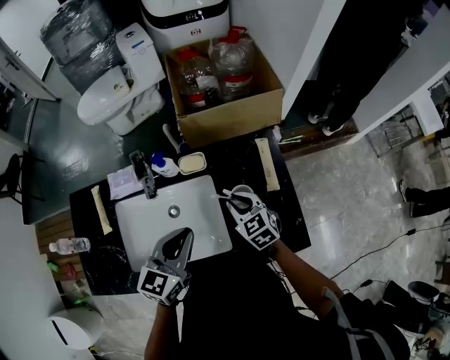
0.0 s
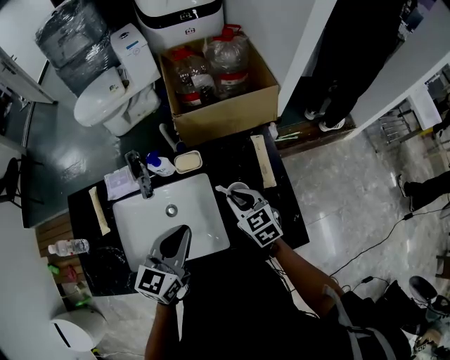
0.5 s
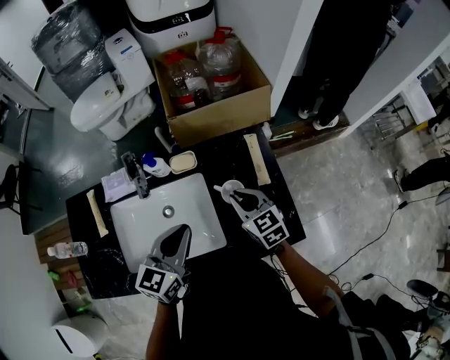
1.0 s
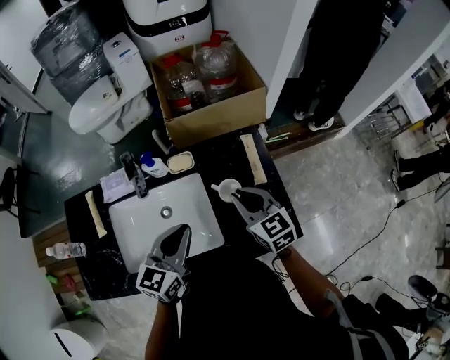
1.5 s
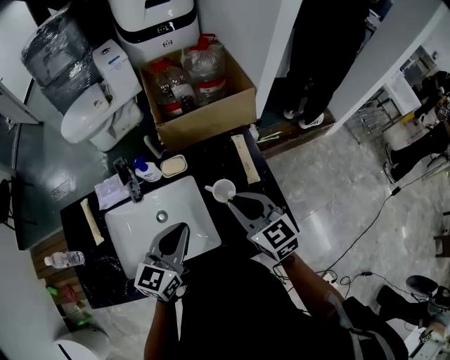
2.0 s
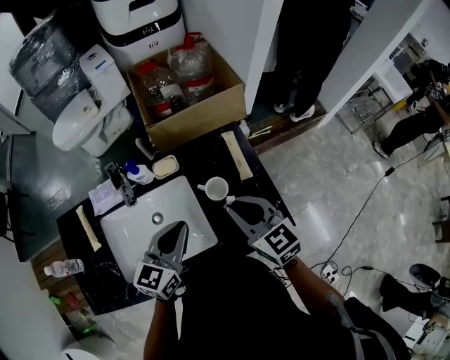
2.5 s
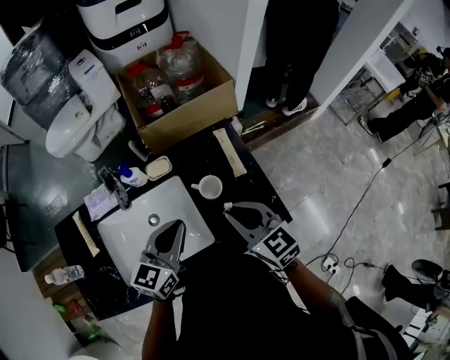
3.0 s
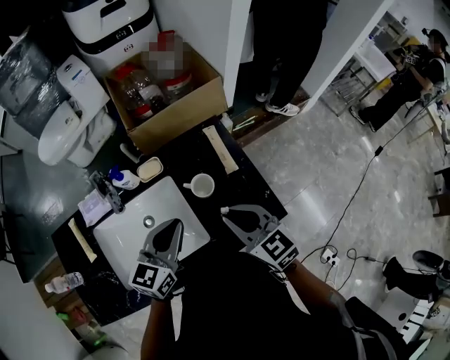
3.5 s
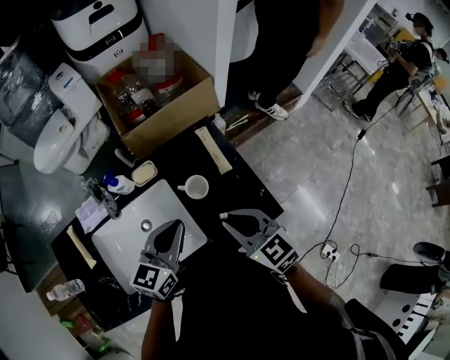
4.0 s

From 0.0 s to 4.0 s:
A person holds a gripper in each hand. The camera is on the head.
From 0.0 s to 2.0 s: The right gripper travels upward by roughly 15 cm.
From 2.0 s to 4.0 s: The left gripper moves roughly 5 cm. Meanwhile the right gripper travels backward by some 10 cm.

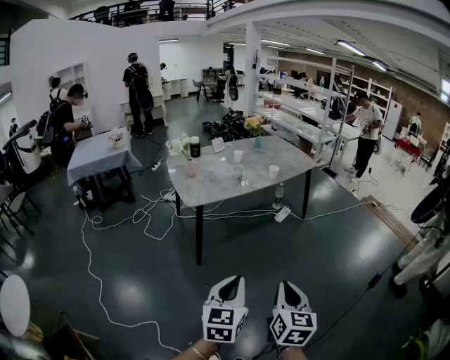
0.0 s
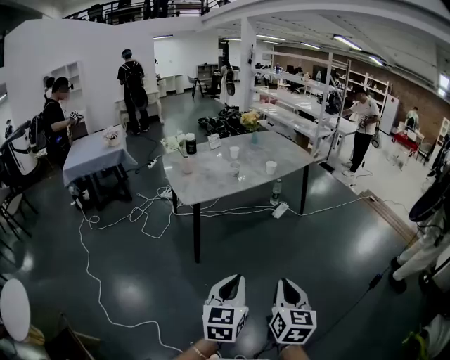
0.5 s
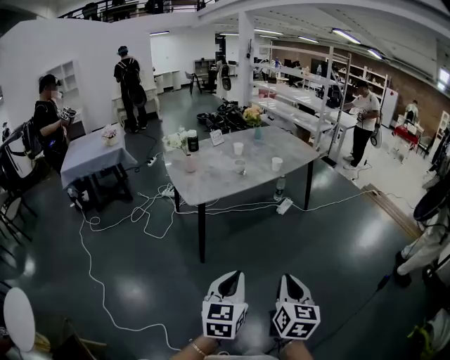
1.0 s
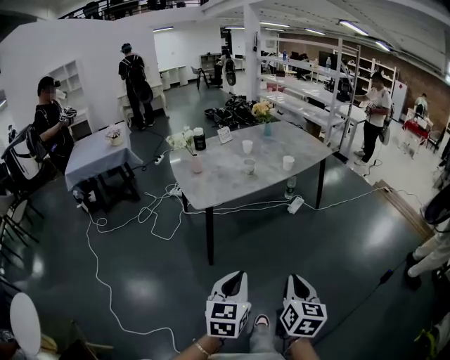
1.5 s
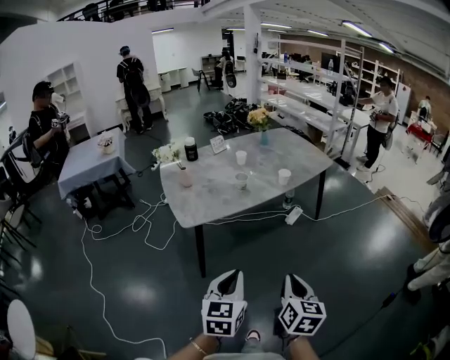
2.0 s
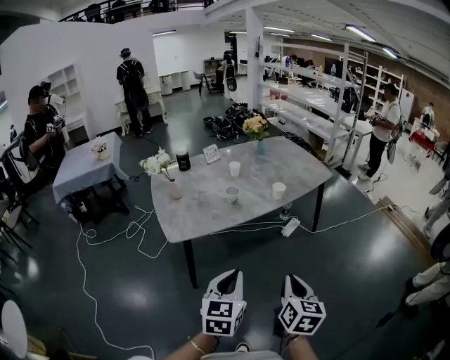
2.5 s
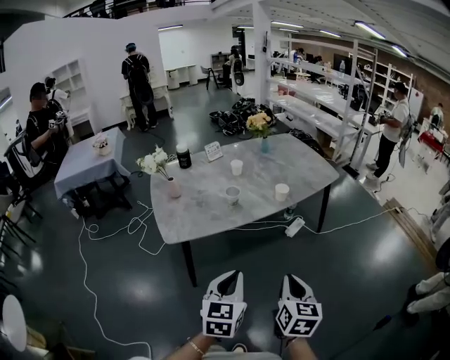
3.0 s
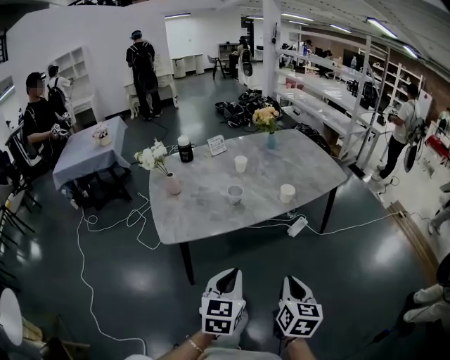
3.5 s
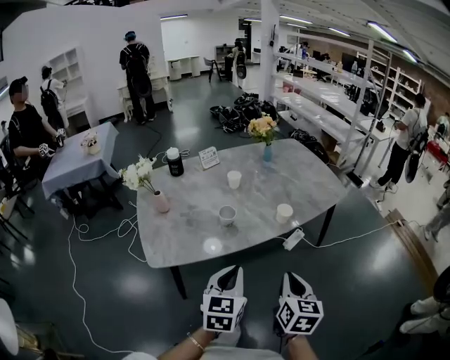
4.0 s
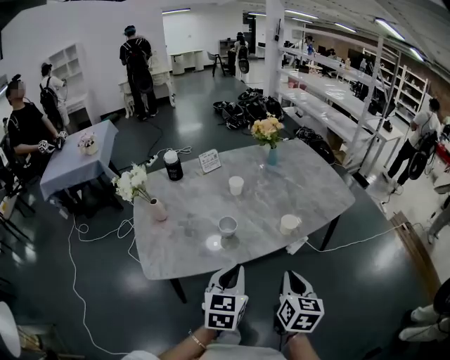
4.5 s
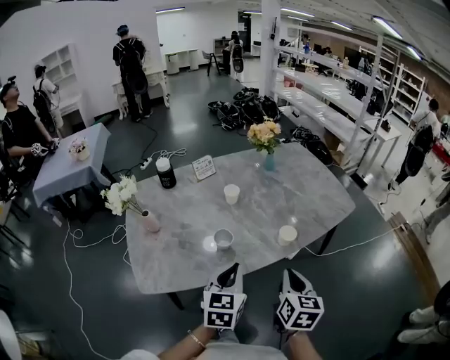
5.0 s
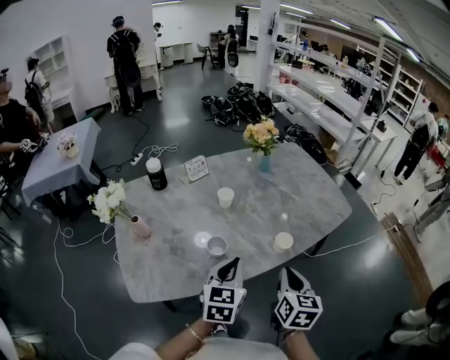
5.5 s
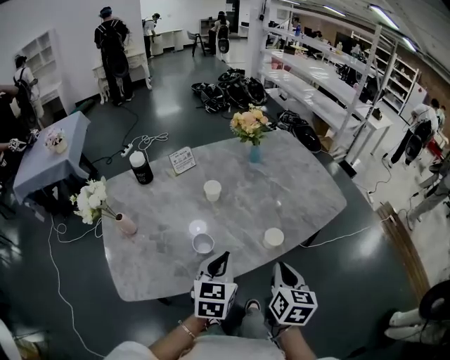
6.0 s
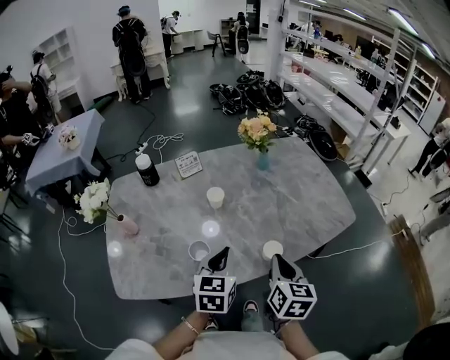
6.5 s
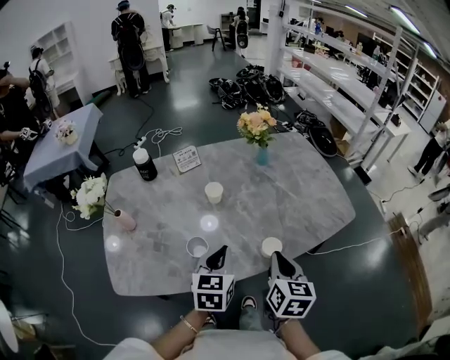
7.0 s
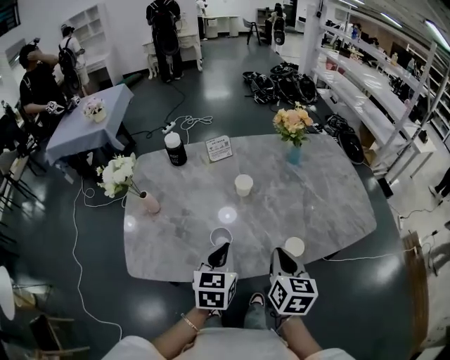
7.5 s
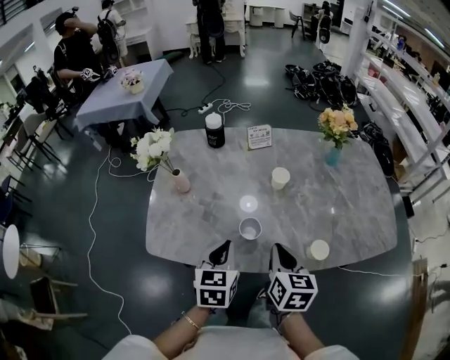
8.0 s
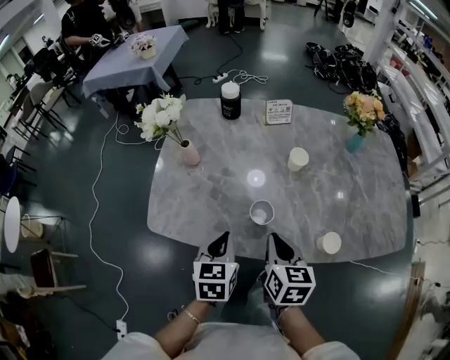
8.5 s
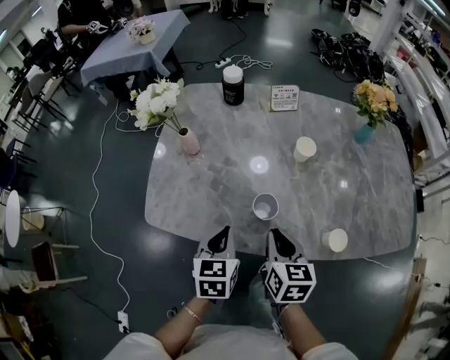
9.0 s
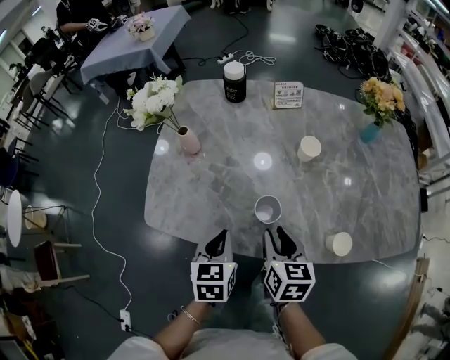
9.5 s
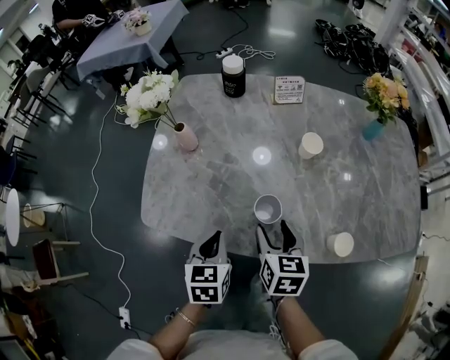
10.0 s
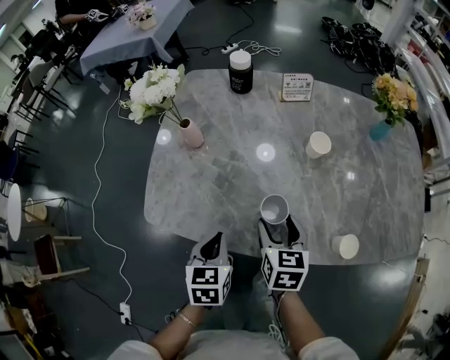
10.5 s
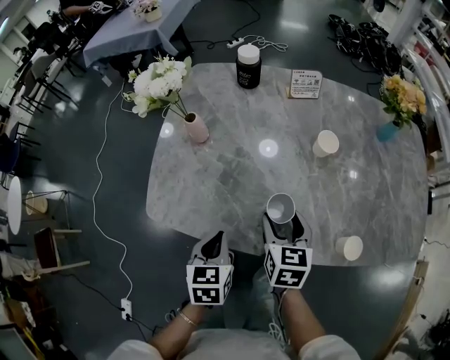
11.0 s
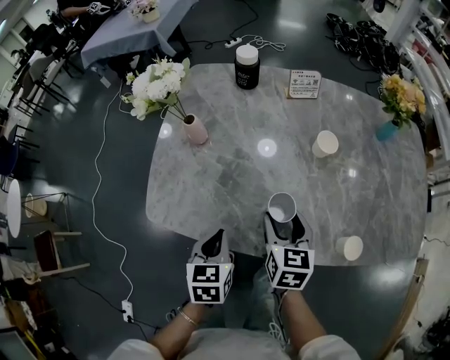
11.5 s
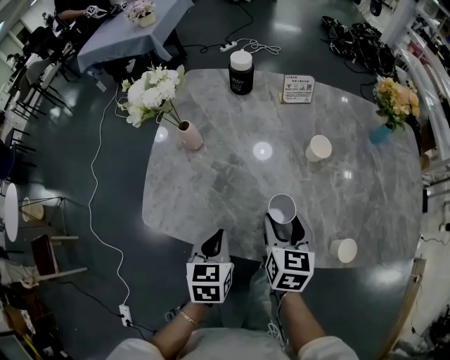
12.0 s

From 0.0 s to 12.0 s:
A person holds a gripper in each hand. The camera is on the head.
From 0.0 s to 2.0 s: The two grippers go about 25 cm forward.
From 2.0 s to 4.0 s: Both grippers travel together forward, approximately 35 cm.
From 4.0 s to 6.0 s: The two grippers go roughly 20 cm forward.
From 6.0 s to 8.0 s: The right gripper moves about 15 cm, and rotates about 30 degrees; the left gripper changes place by some 10 cm, and rotates some 30 degrees.
From 8.0 s to 10.0 s: The two grippers go roughly 10 cm downward and to the left. The right gripper opens up.
From 10.0 s to 12.0 s: The grippers move only a little.

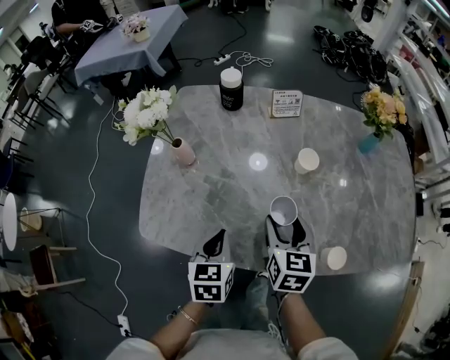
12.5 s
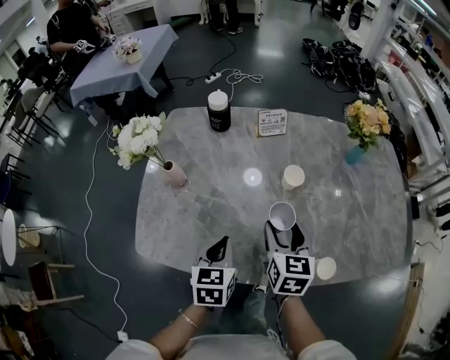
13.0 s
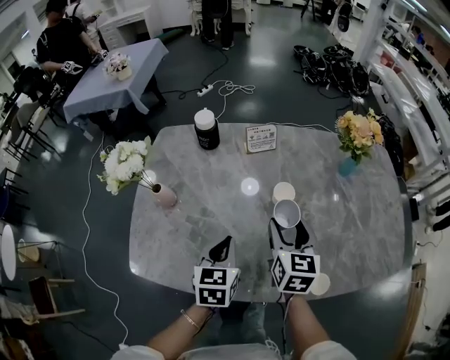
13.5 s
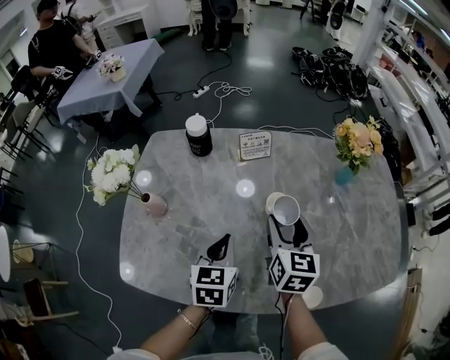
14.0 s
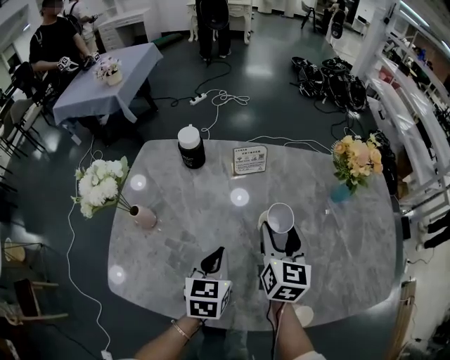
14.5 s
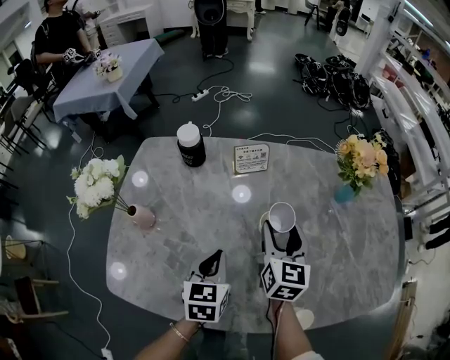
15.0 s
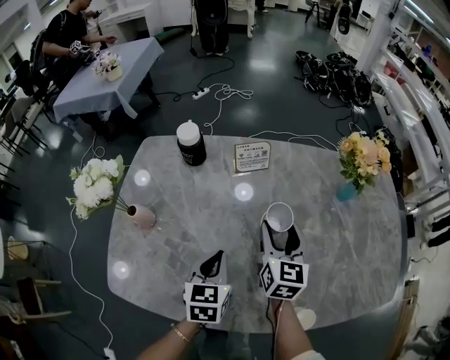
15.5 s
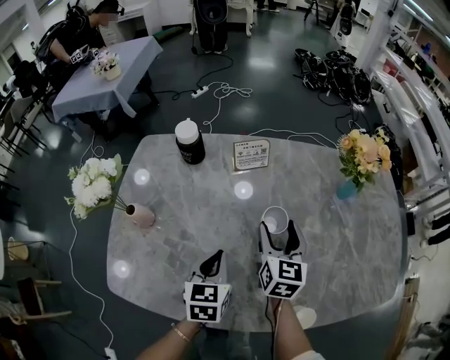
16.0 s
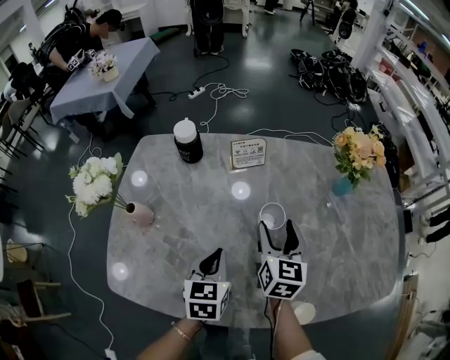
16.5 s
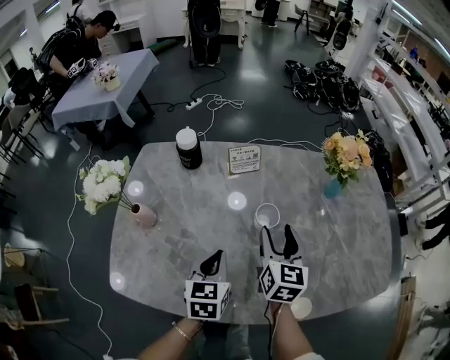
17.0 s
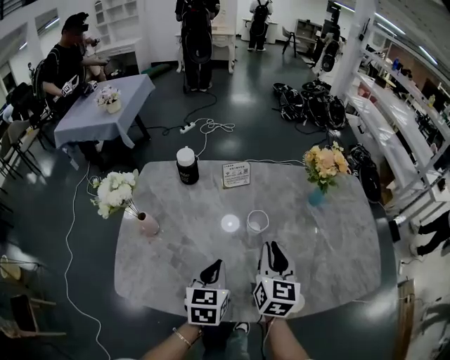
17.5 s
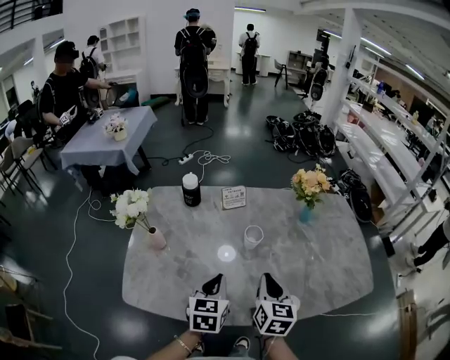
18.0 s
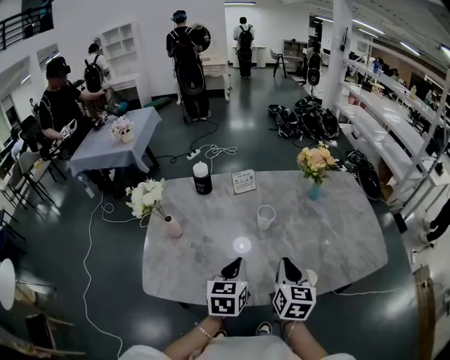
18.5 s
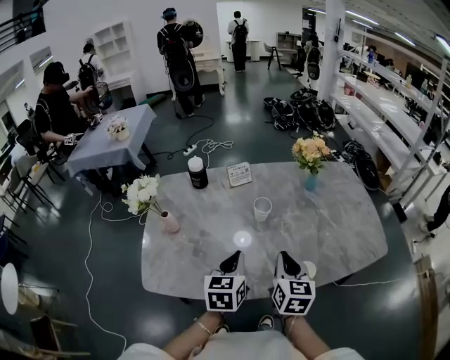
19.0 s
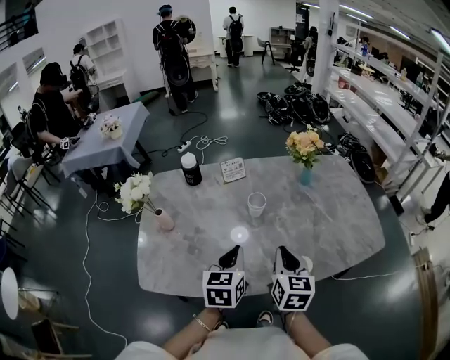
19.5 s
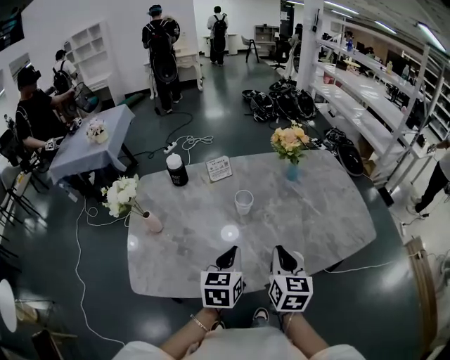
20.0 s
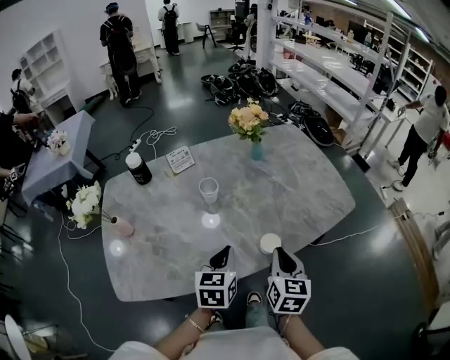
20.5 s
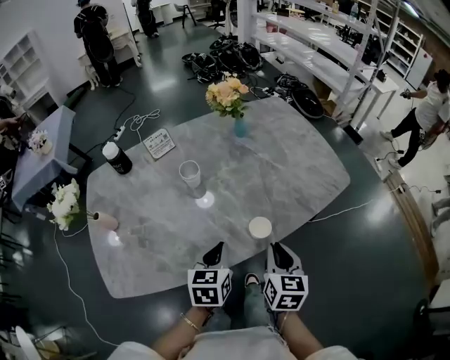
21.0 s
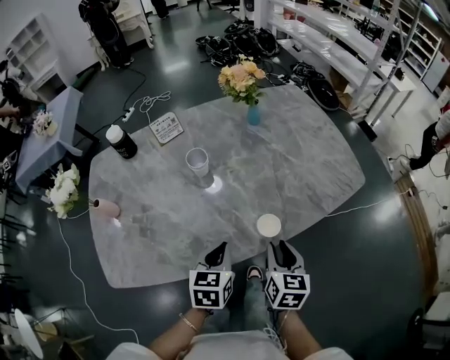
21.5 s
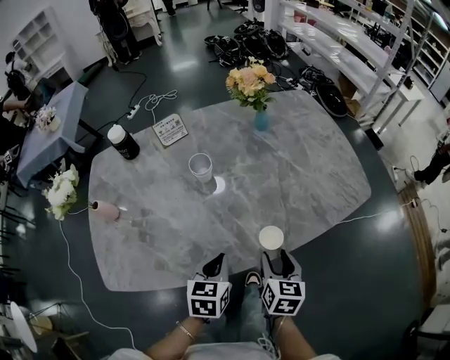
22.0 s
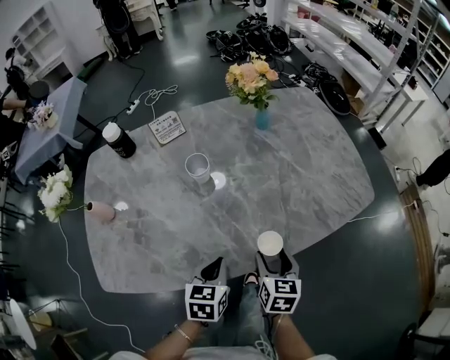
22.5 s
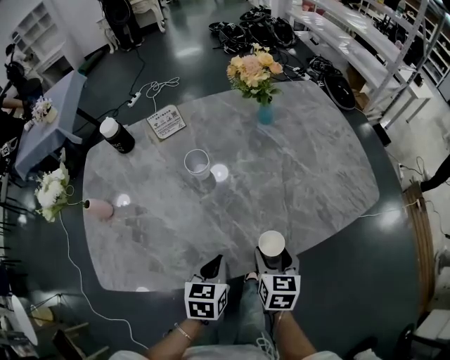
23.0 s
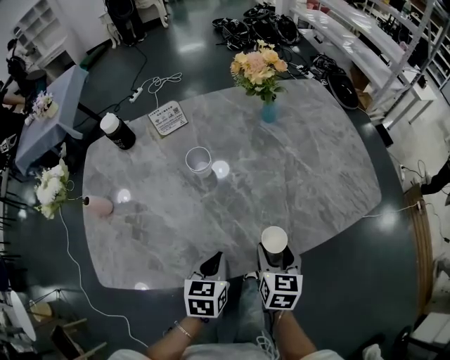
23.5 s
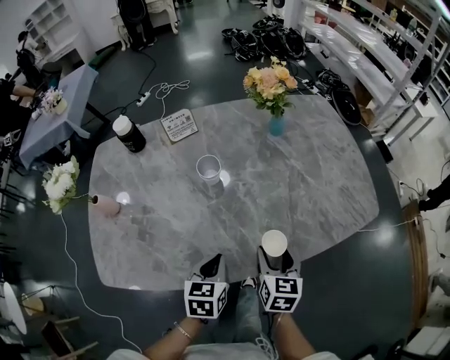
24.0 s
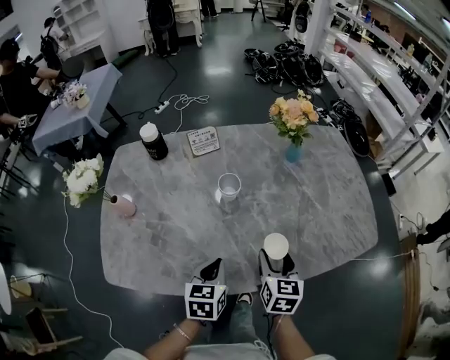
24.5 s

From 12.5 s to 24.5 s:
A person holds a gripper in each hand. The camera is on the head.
From 12.5 s to 14.5 s: The grippers both shift forward and to the right by about 20 cm.
From 14.5 s to 16.5 s: The grippers move only a little.
From 16.5 s to 18.5 s: The left gripper goes about 15 cm backward and upward. The right gripper heads backward, covering approximately 20 cm, and closes up.
From 18.5 s to 20.5 s: The right gripper is displaced to the right and backward by about 15 cm. Meanwhile the left gripper travels to the right by roughly 10 cm.
From 20.5 s to 22.5 s: Both grippers travel together downward, about 10 cm. The right gripper opens up.
From 22.5 s to 24.5 s: The left gripper shifts some 5 cm to the left, while the right gripper goes roughly 10 cm forward, upward and to the left.
